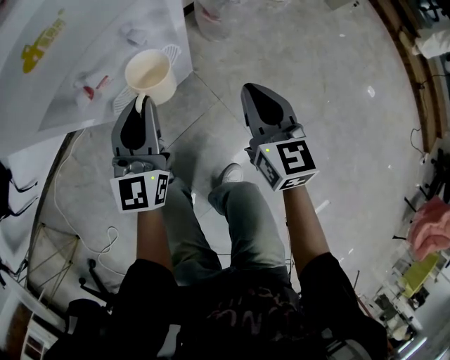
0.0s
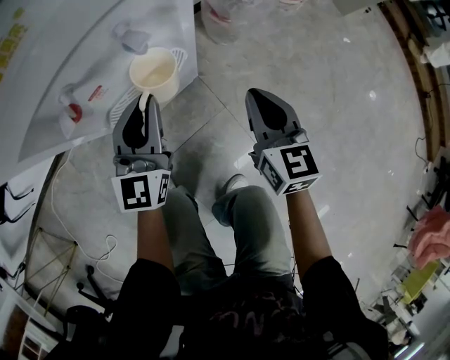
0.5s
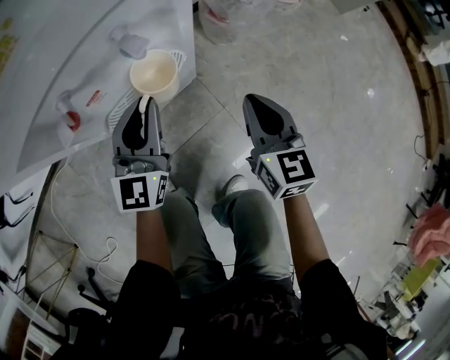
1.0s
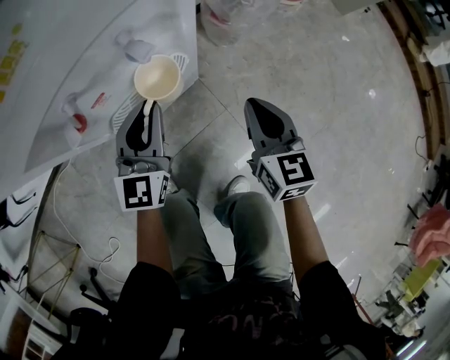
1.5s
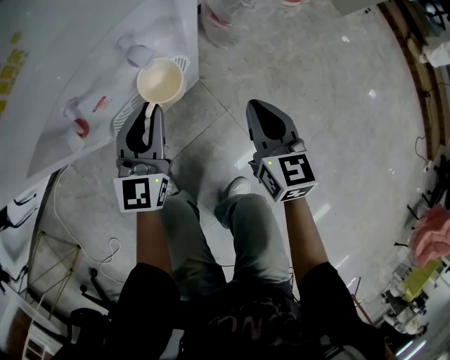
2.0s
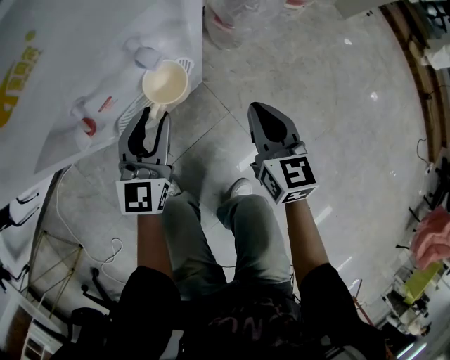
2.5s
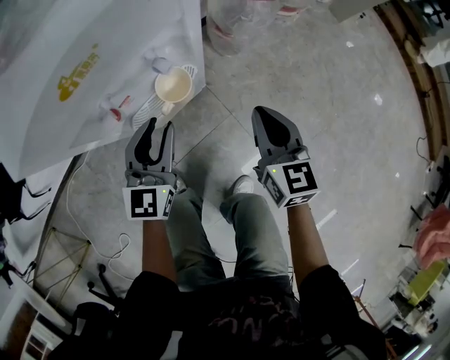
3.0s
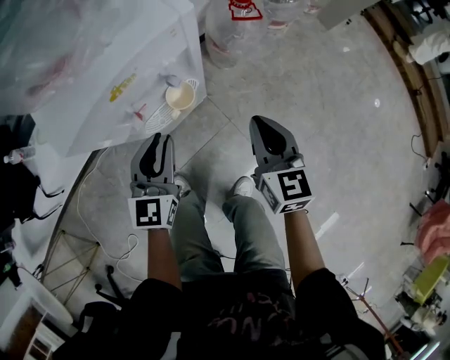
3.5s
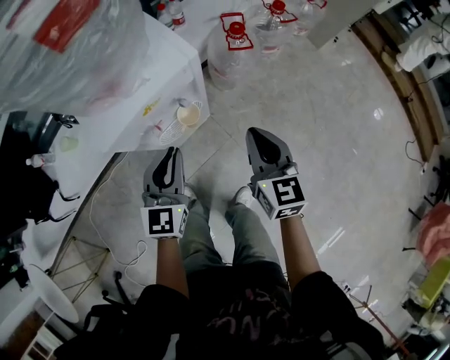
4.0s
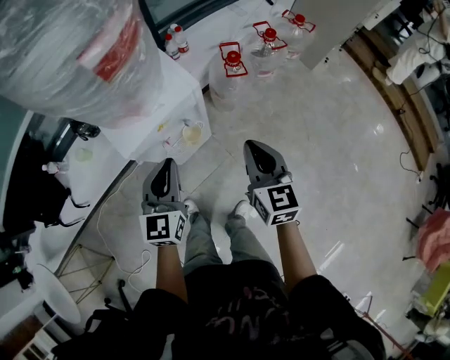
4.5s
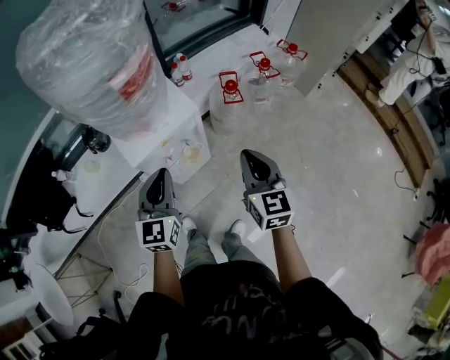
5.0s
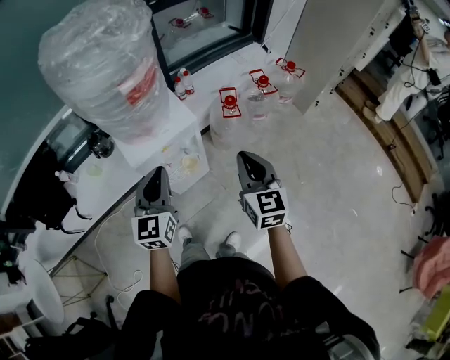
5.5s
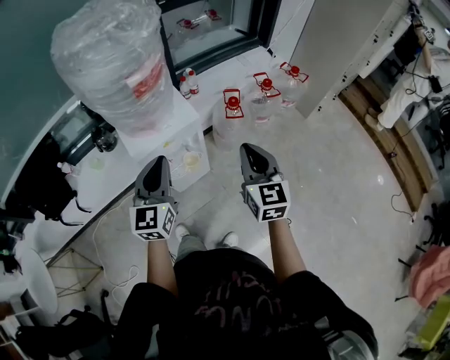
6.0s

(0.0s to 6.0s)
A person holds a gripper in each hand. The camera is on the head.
0.0s - 2.0s: The grippers both shift downward by roughly 10 cm.
2.0s - 4.0s: Both grippers move upward, some 30 cm. The left gripper opens, then closes again.
4.0s - 6.0s: Both grippers travel together upward, about 25 cm.

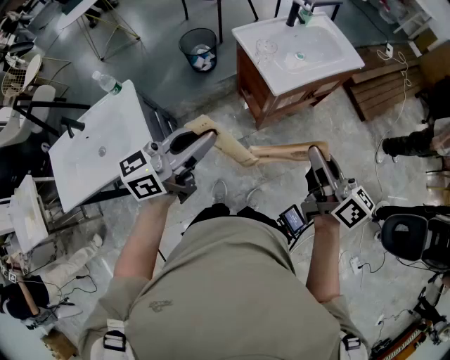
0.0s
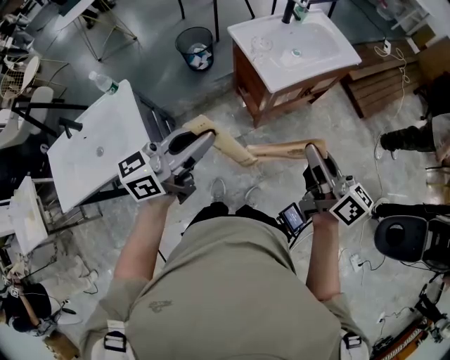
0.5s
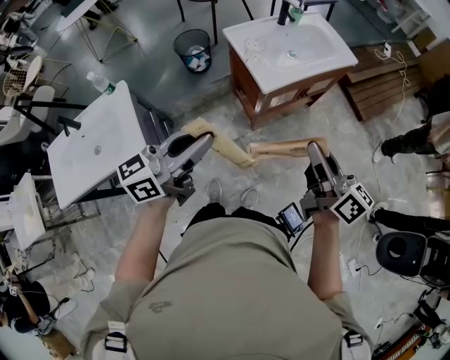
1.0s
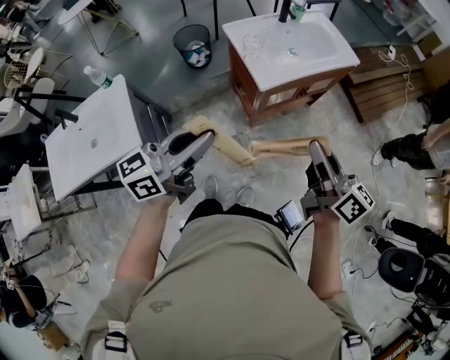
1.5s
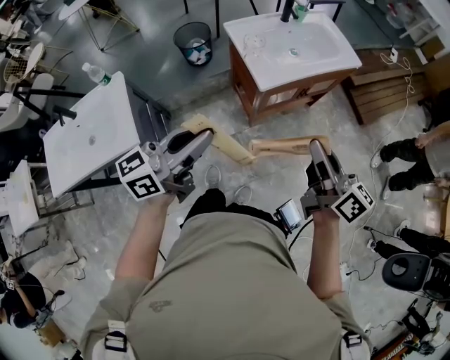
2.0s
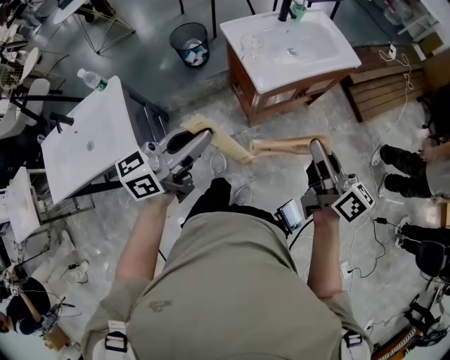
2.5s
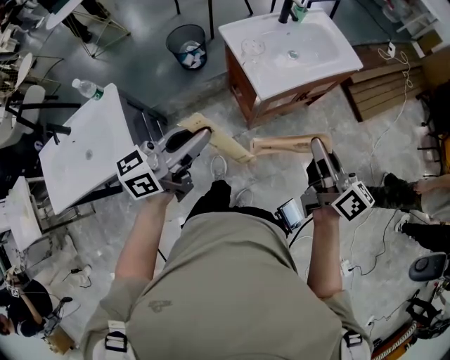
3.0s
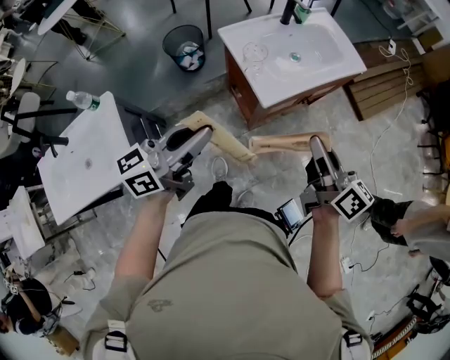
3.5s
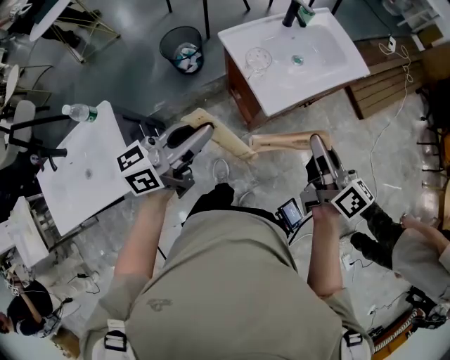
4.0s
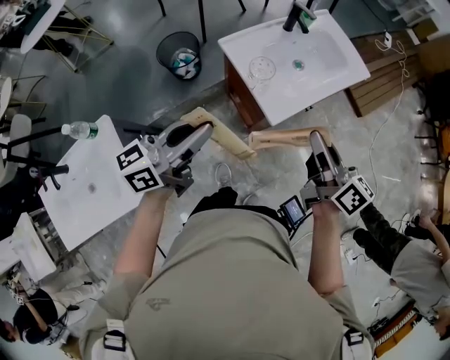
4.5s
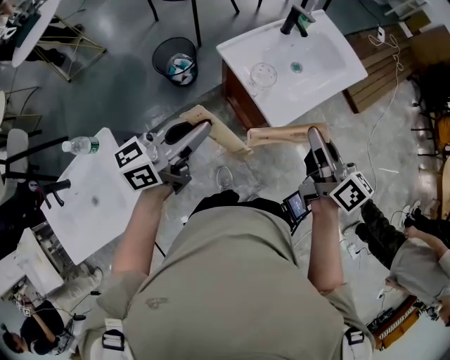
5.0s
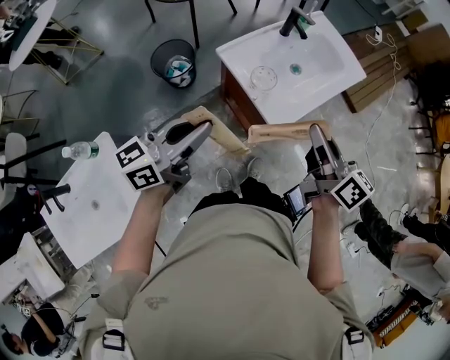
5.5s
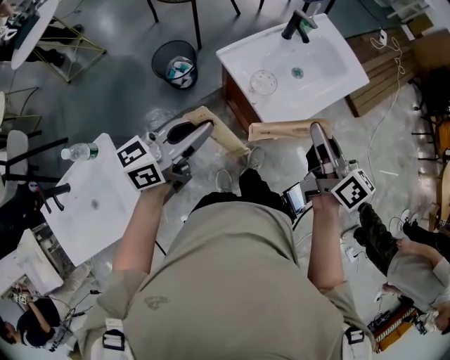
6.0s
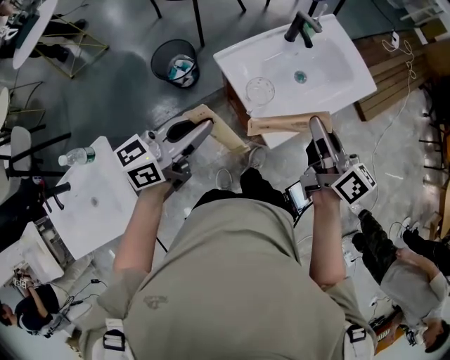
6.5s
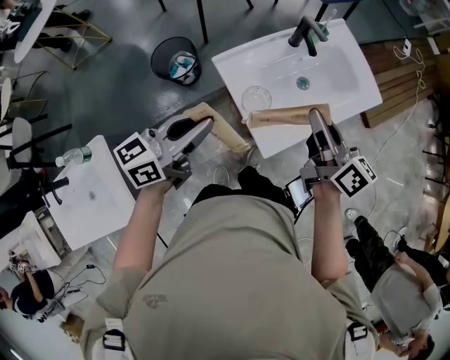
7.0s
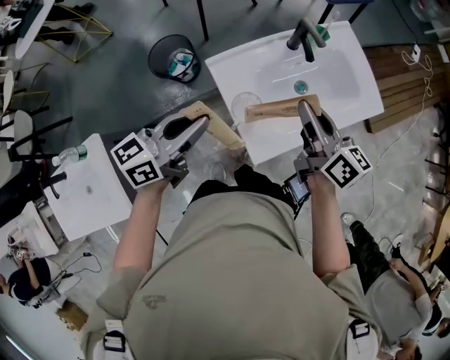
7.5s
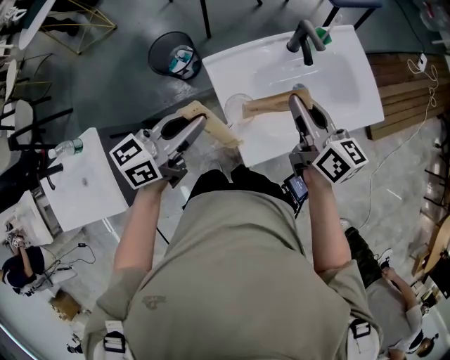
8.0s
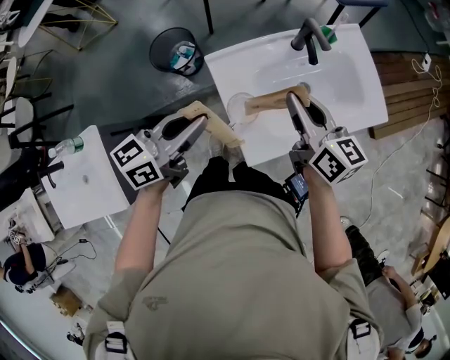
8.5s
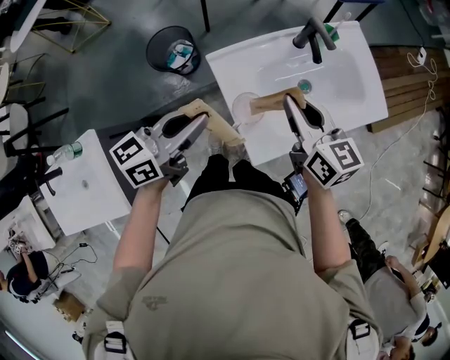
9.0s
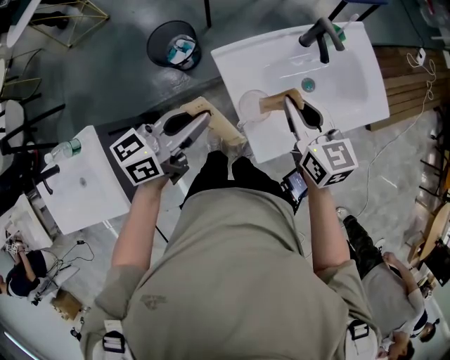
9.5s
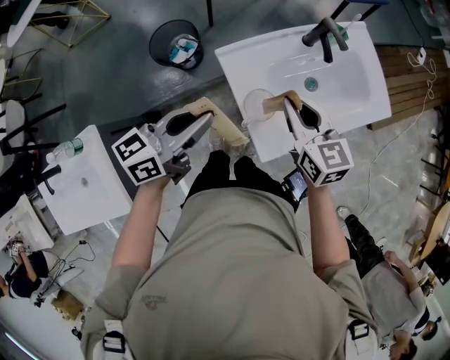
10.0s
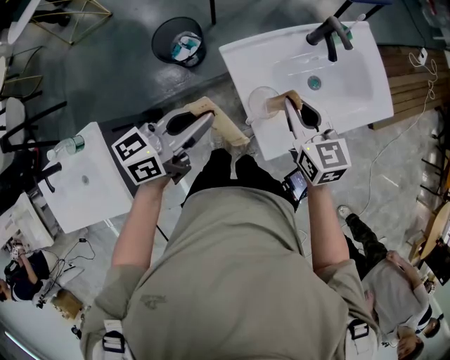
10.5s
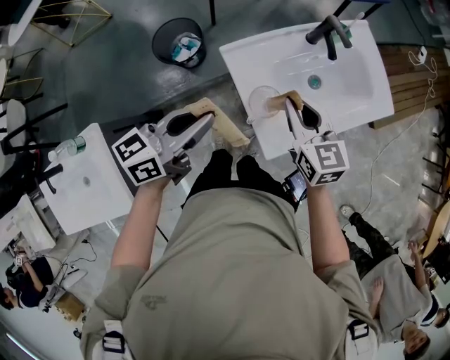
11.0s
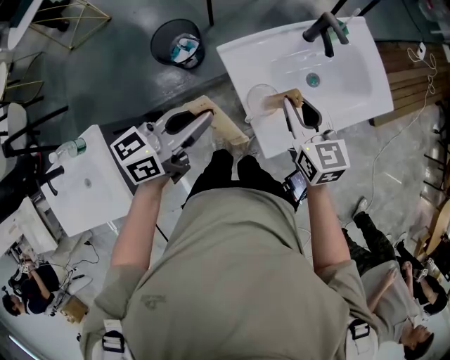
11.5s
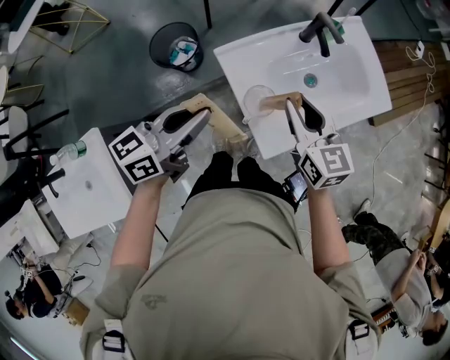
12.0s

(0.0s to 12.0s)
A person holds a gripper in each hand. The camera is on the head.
0.0s - 2.0s: The grippers both shift to the right by roughly 5 cm.
2.0s - 4.0s: The grippers both shift forward and to the left by roughly 15 cm.
4.0s - 6.0s: Both grippers move forward and to the left, about 10 cm.
6.0s - 8.0s: The right gripper goes approximately 20 cm forward, and swivels approximately 20 degrees. Meanwhile the left gripper goes about 15 cm forward and to the right.
8.0s - 10.0s: The right gripper heads to the left, covering roughly 5 cm, and swivels some 30 degrees.
10.0s - 12.0s: The grippers make only small movements.

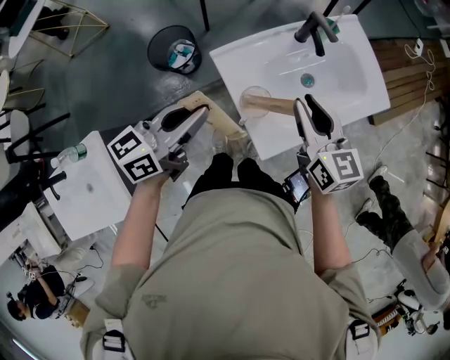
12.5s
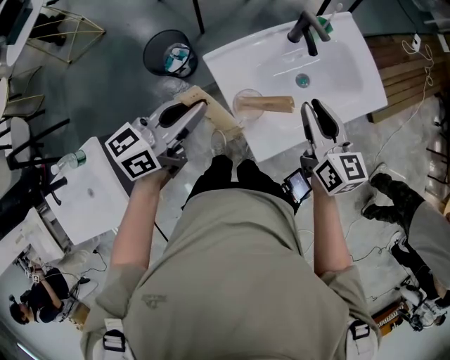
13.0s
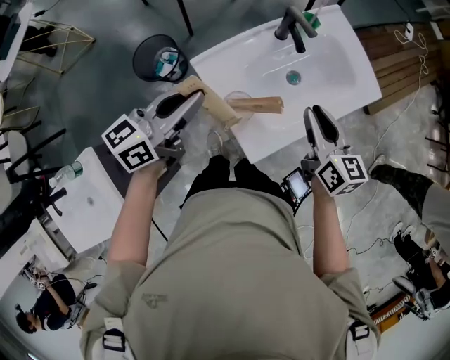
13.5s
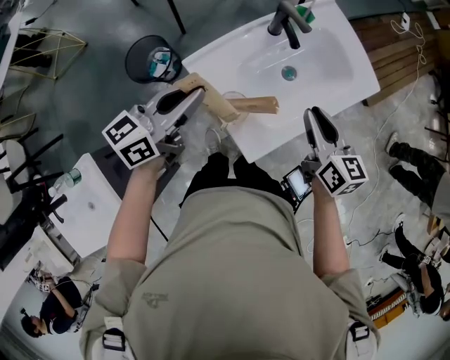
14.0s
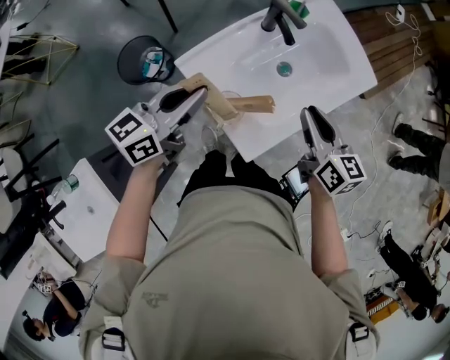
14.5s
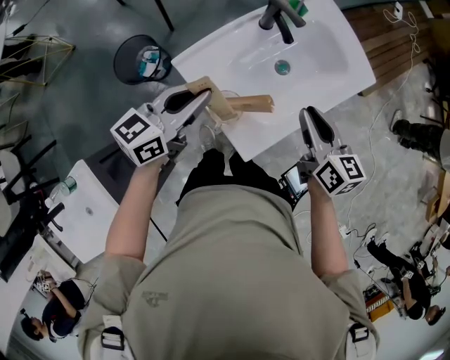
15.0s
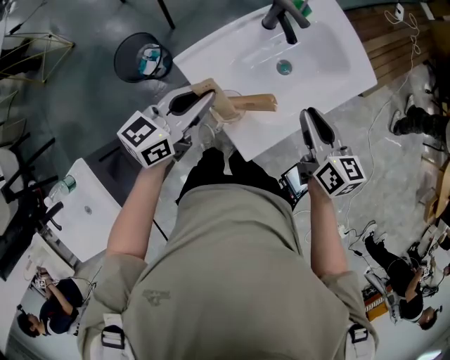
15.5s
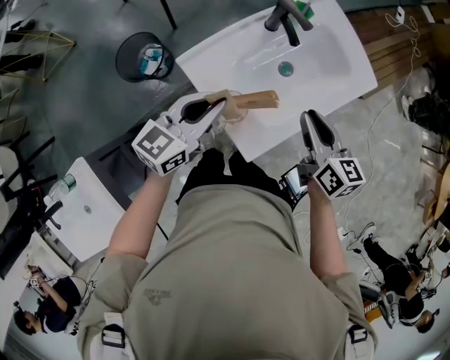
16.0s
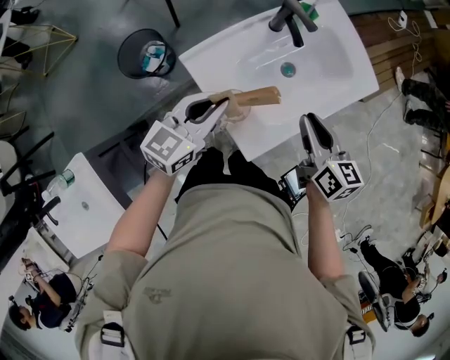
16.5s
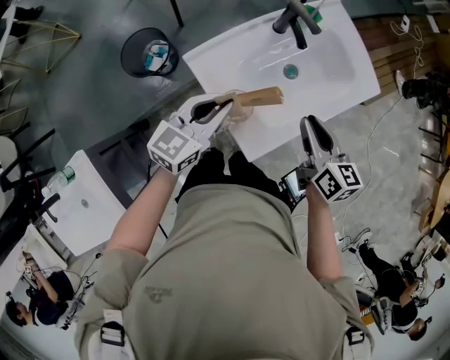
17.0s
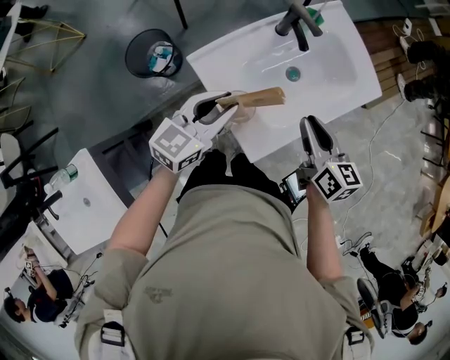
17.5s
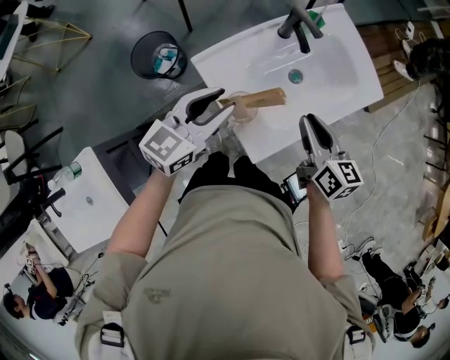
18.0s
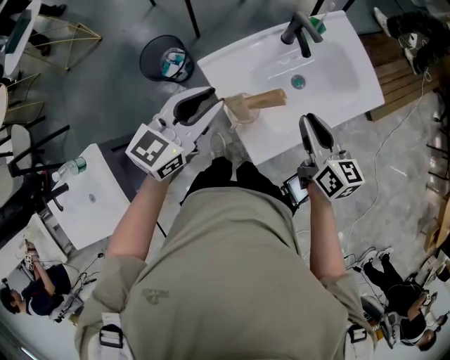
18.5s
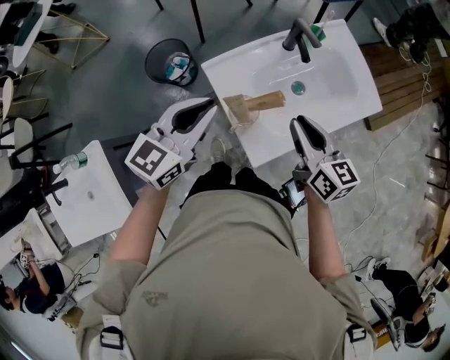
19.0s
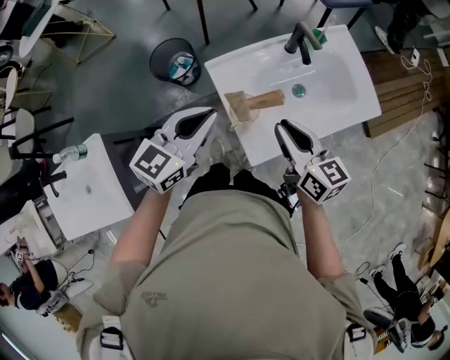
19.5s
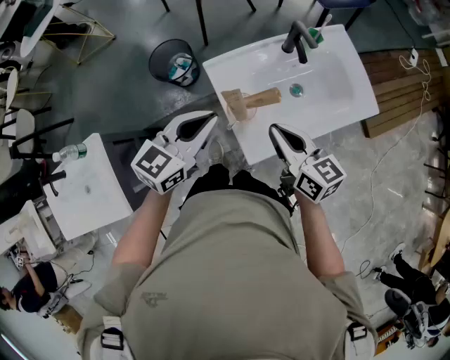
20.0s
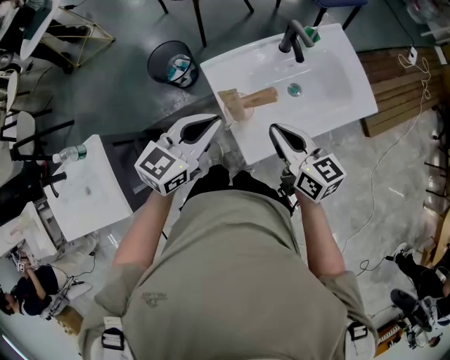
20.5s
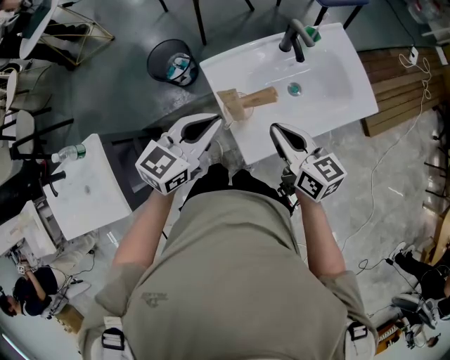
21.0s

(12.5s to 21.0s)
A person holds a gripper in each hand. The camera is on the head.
12.5s - 14.5s: The left gripper heads forward and to the right, covering roughly 10 cm. The right gripper is displaced to the right and downward by about 10 cm, and rotates about 20 degrees.
14.5s - 16.5s: The left gripper shifts by some 5 cm.
16.5s - 19.0s: The left gripper heads upward, covering approximately 10 cm. Meanwhile the right gripper changes place by roughly 5 cm.
19.0s - 21.0s: The right gripper ends up roughly 5 cm from where it was; the left gripper shifts by some 5 cm.
